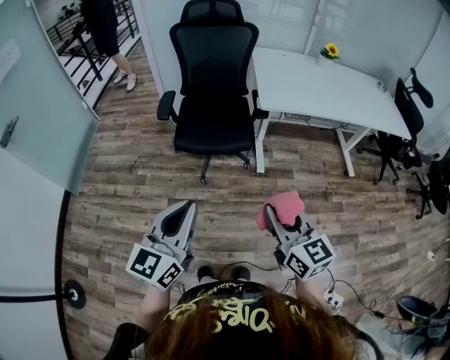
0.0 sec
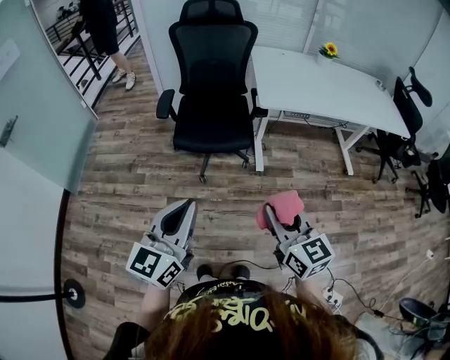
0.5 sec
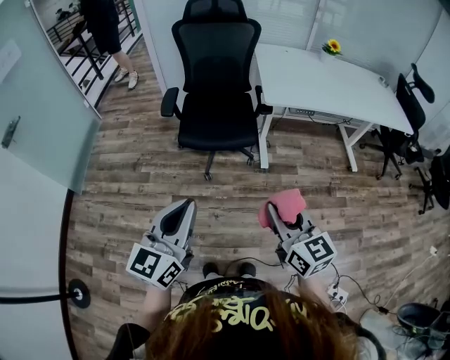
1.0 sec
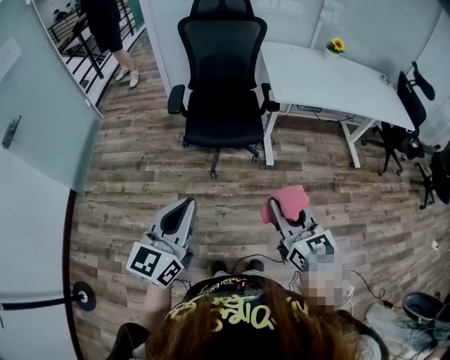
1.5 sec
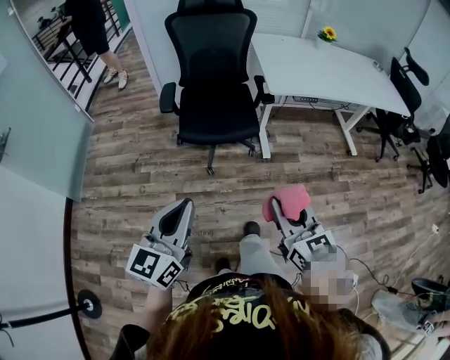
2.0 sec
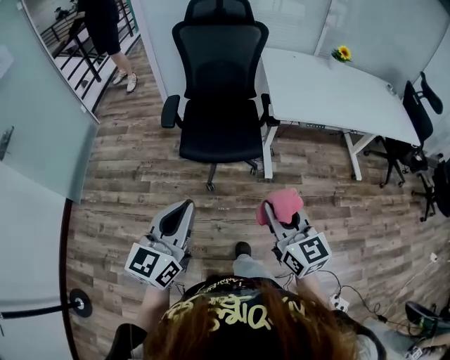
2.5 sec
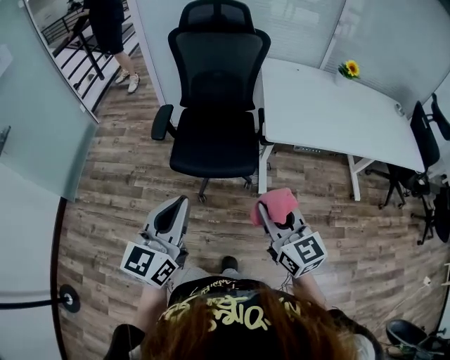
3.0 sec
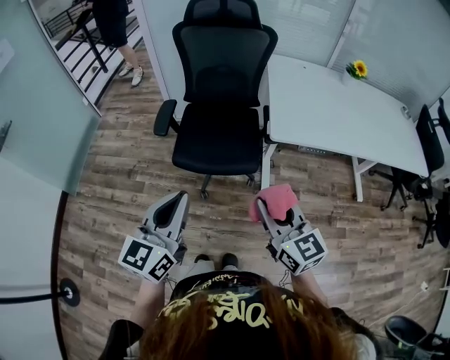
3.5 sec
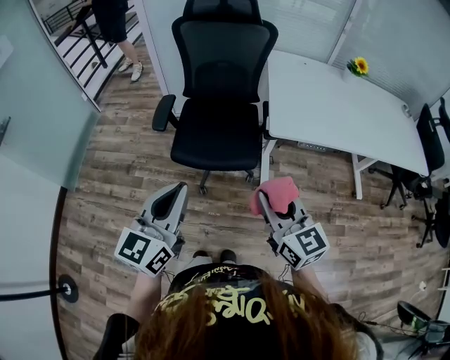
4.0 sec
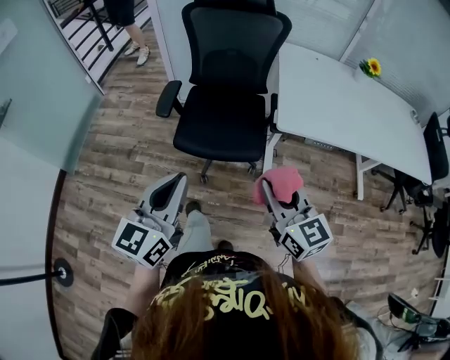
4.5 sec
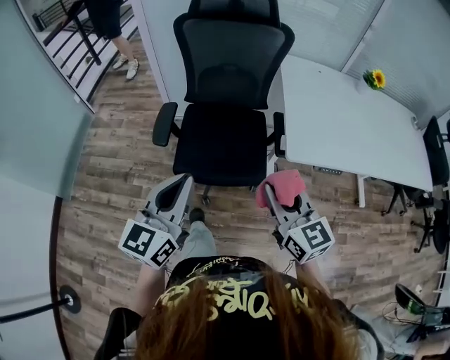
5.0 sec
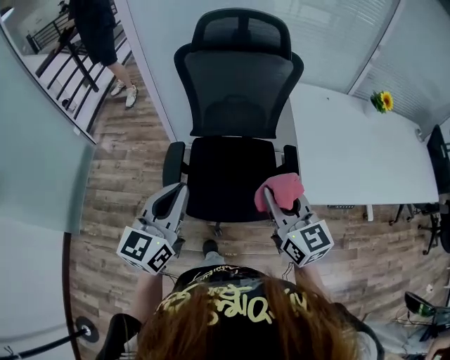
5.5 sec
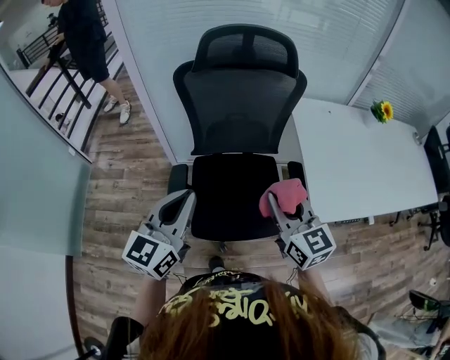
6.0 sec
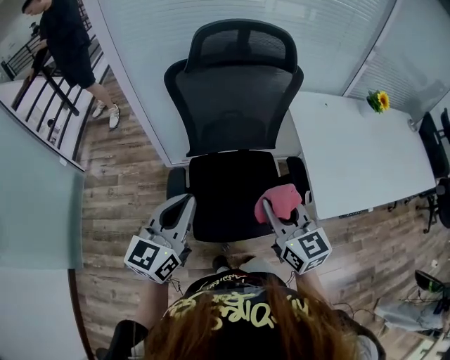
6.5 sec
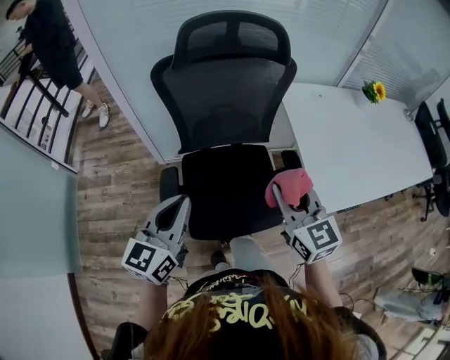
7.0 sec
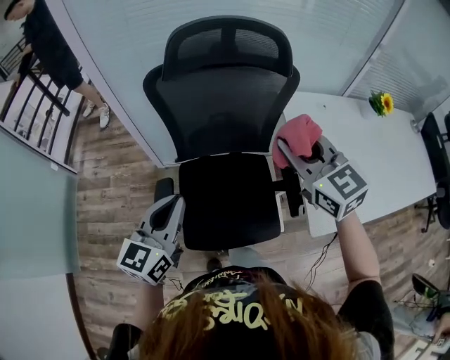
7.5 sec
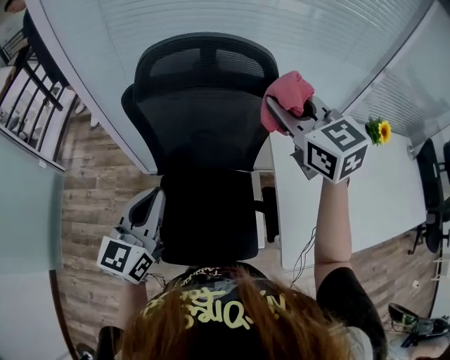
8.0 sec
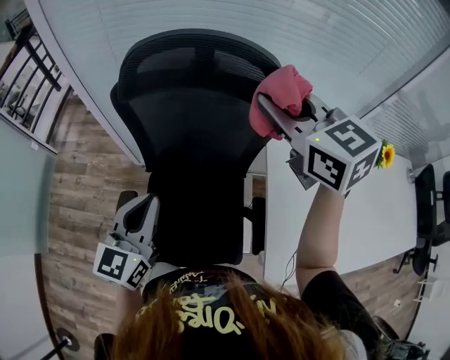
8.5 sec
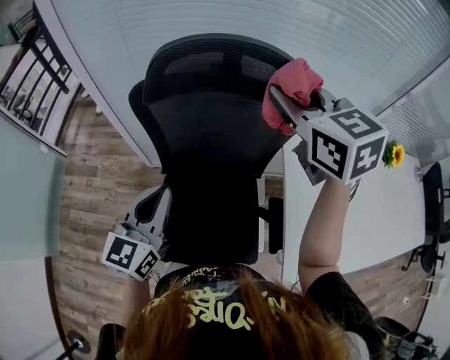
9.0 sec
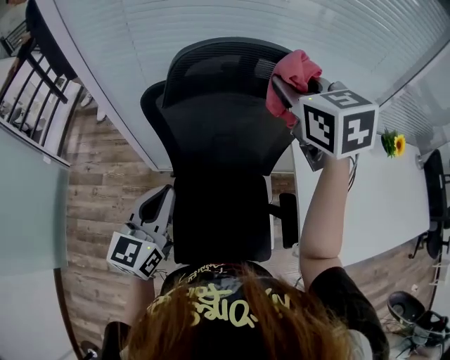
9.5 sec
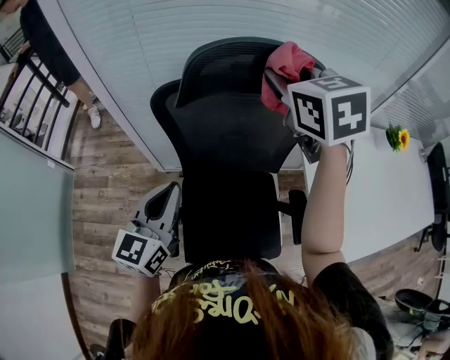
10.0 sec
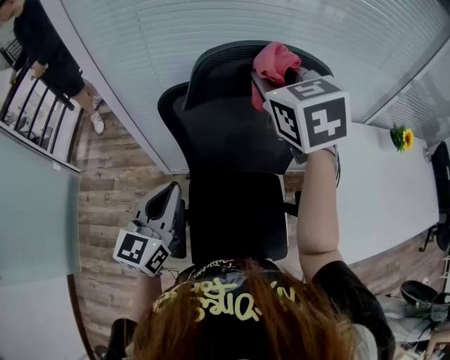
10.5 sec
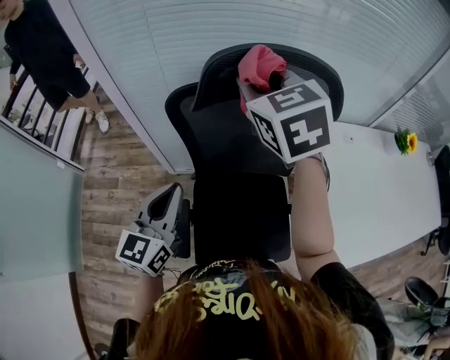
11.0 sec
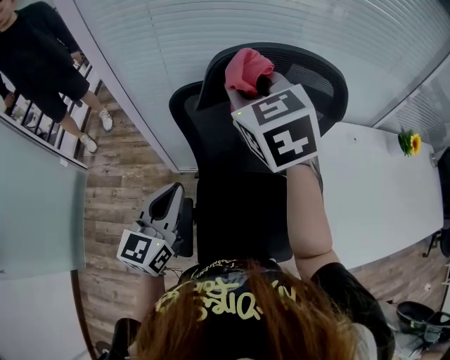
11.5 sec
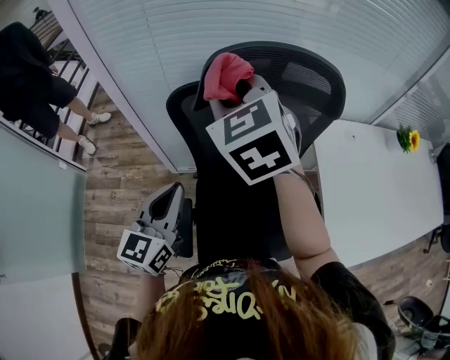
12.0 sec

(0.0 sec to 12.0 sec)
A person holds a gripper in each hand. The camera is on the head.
0.0 sec - 2.0 sec: Both grippers move to the left, about 10 cm.
2.0 sec - 4.0 sec: The right gripper travels forward by about 25 cm, while the left gripper moves forward and to the right, some 25 cm.
4.0 sec - 6.0 sec: The two grippers go approximately 35 cm forward.
6.0 sec - 8.0 sec: The left gripper heads forward, covering approximately 20 cm; the right gripper moves forward and upward, roughly 35 cm.
8.0 sec - 10.0 sec: The two grippers go roughly 10 cm to the left and forward.
10.0 sec - 12.0 sec: The right gripper shifts roughly 15 cm to the left.

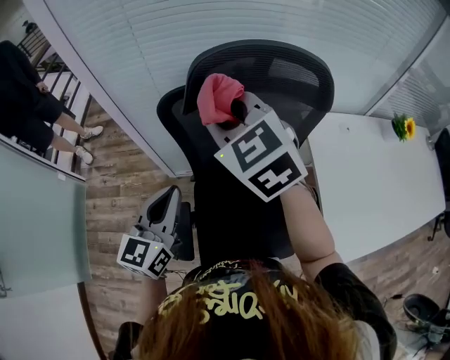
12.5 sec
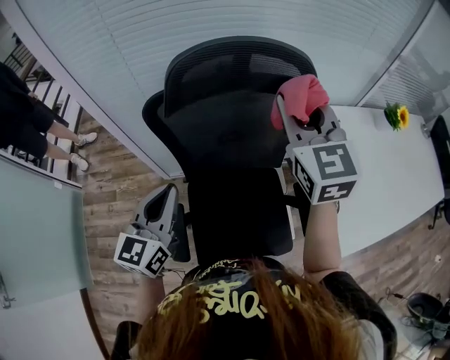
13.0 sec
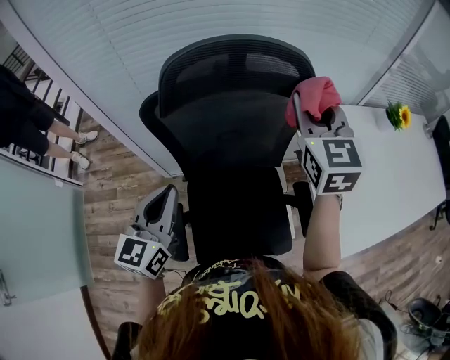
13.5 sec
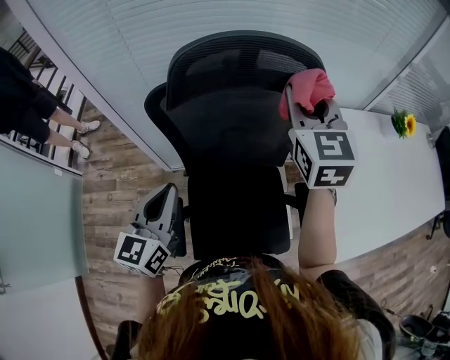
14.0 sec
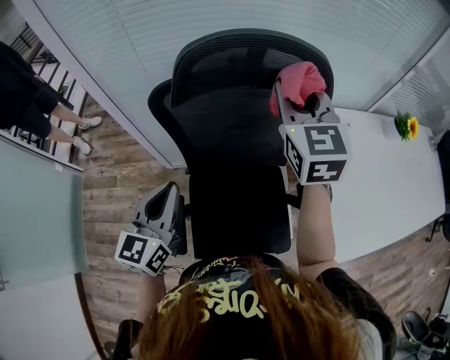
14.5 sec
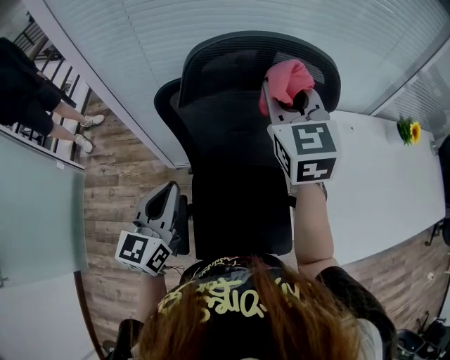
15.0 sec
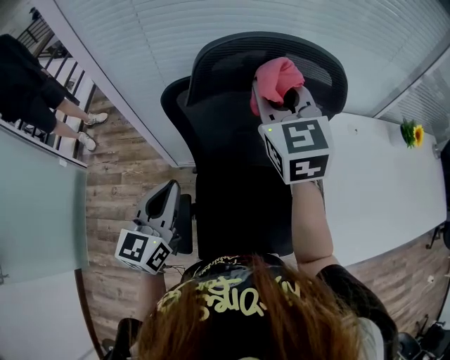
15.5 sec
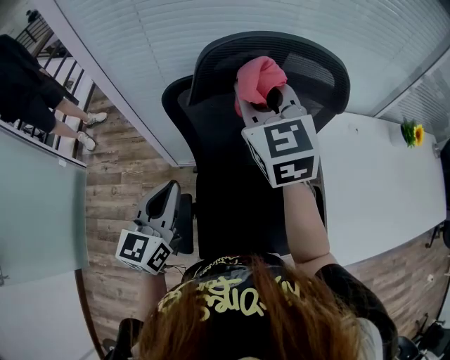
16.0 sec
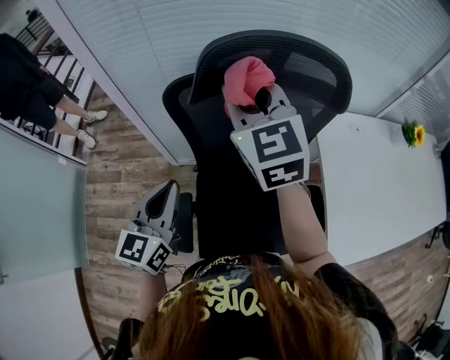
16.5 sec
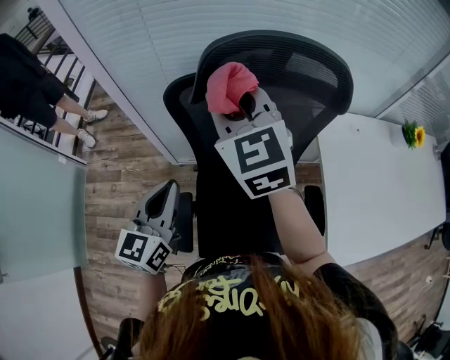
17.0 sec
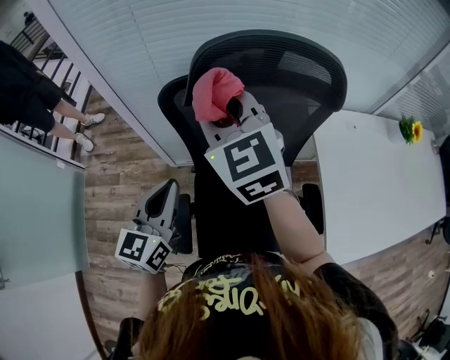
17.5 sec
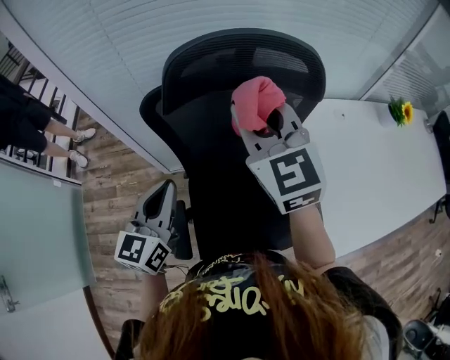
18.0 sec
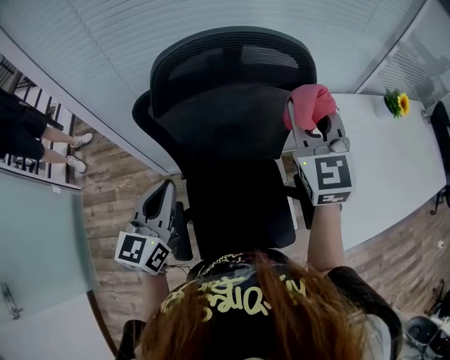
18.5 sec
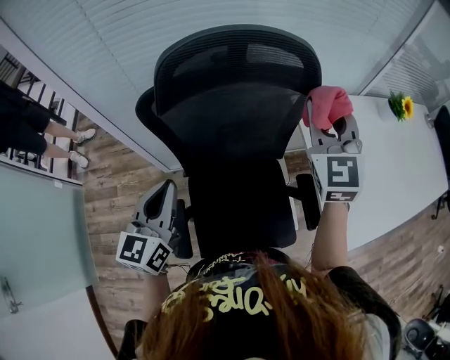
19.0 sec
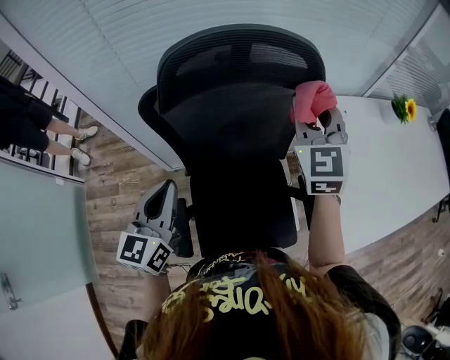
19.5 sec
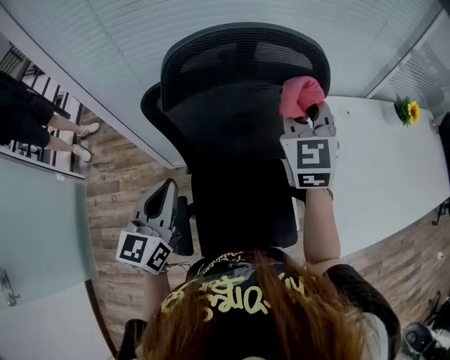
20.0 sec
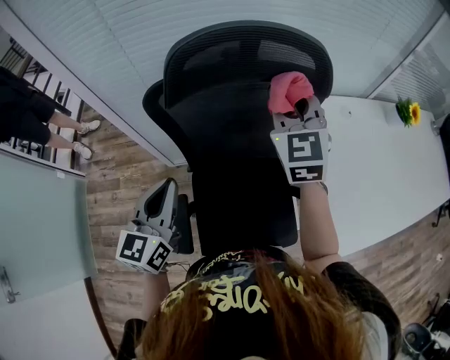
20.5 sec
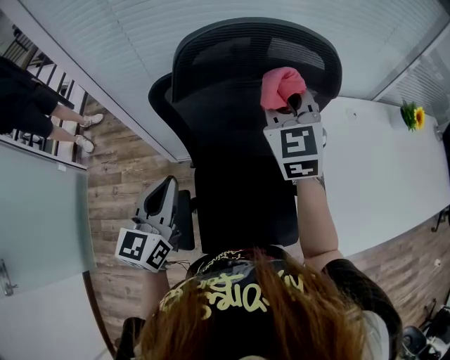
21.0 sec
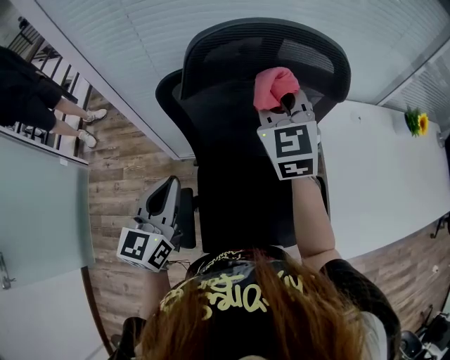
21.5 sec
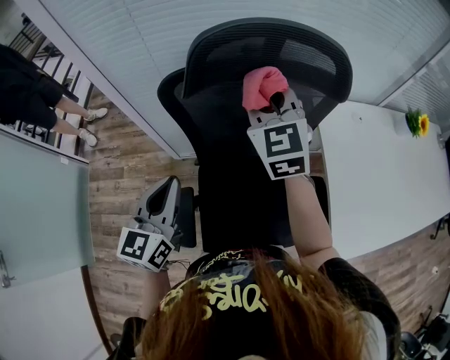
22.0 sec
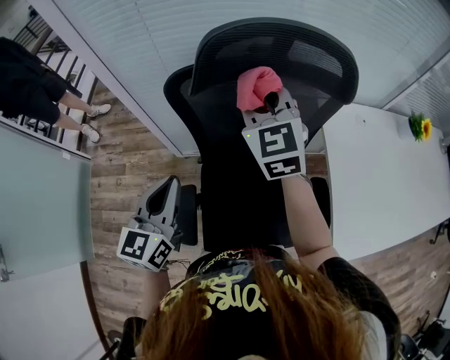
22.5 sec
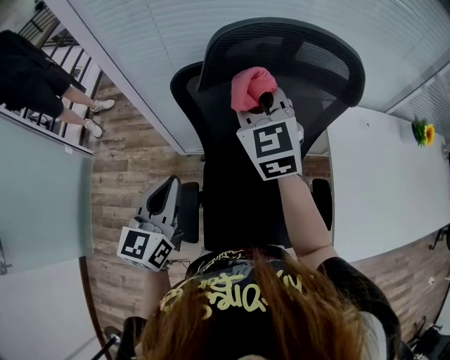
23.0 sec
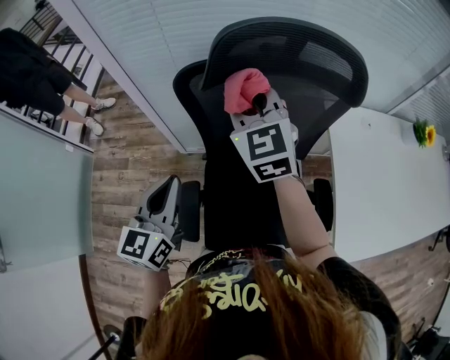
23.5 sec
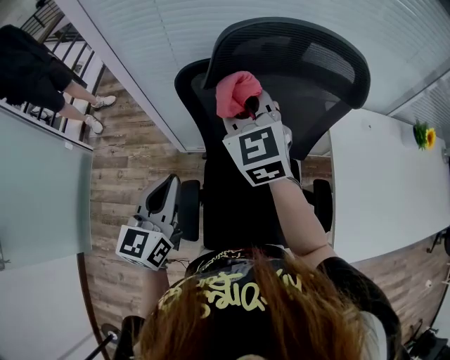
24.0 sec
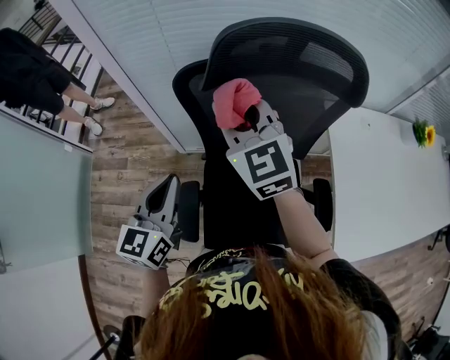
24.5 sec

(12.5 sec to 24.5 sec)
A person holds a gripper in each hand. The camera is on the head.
12.5 sec - 14.5 sec: The right gripper moves to the right, approximately 15 cm, and changes its angle by approximately 30 degrees.
14.5 sec - 16.5 sec: The right gripper travels to the left by roughly 15 cm.
16.5 sec - 18.5 sec: The right gripper travels to the right by roughly 20 cm, and turns by about 20 degrees. The left gripper changes place by about 5 cm.
18.5 sec - 20.5 sec: The right gripper travels to the left by some 5 cm.
20.5 sec - 22.5 sec: The right gripper goes approximately 10 cm to the left.
22.5 sec - 24.5 sec: The right gripper is displaced to the left by approximately 5 cm.

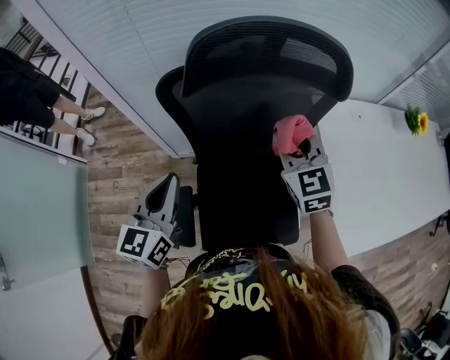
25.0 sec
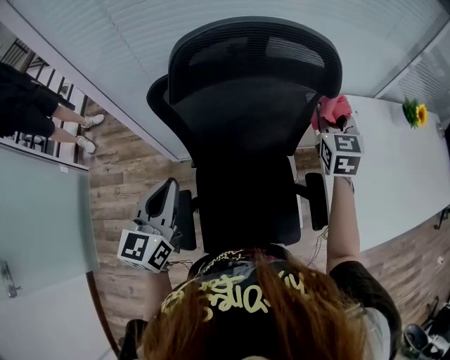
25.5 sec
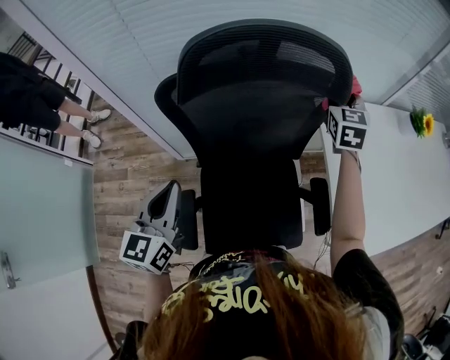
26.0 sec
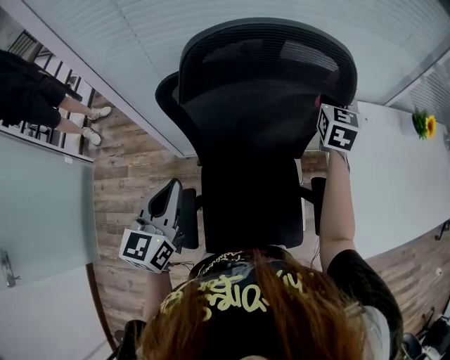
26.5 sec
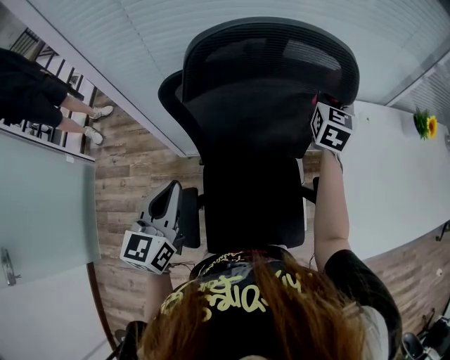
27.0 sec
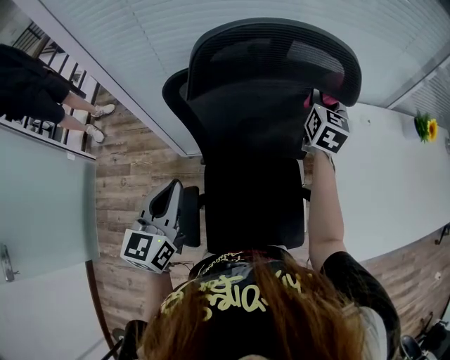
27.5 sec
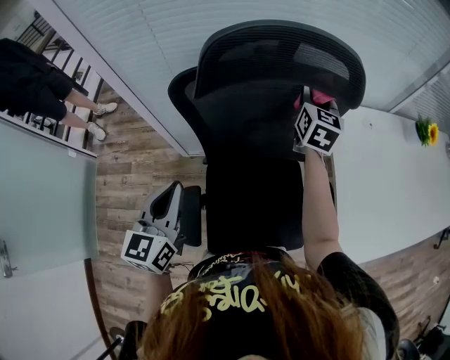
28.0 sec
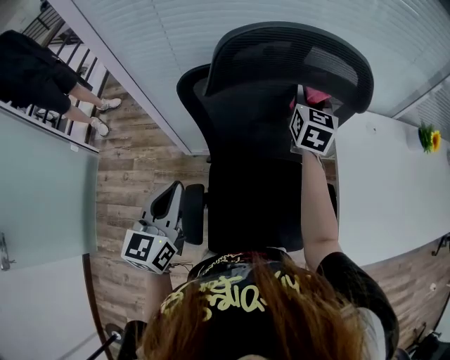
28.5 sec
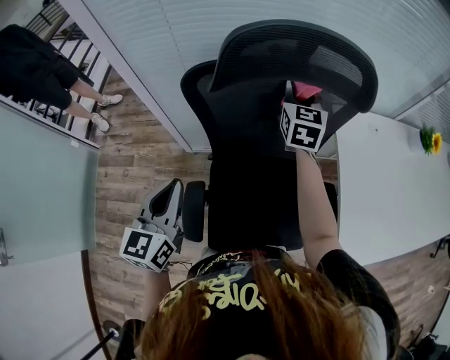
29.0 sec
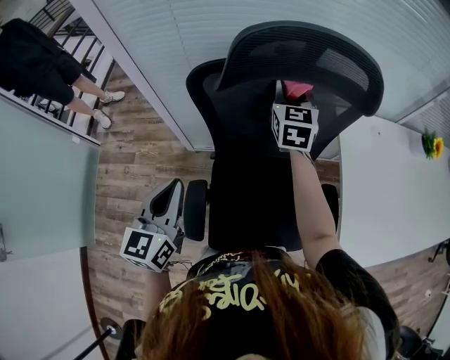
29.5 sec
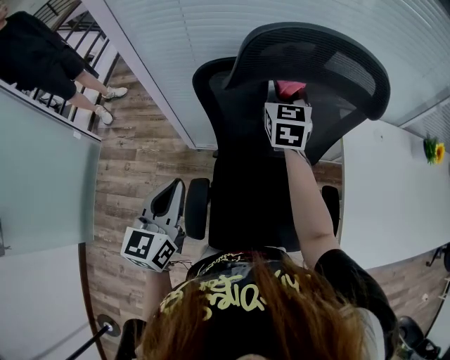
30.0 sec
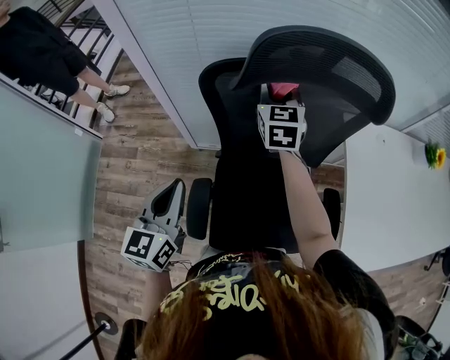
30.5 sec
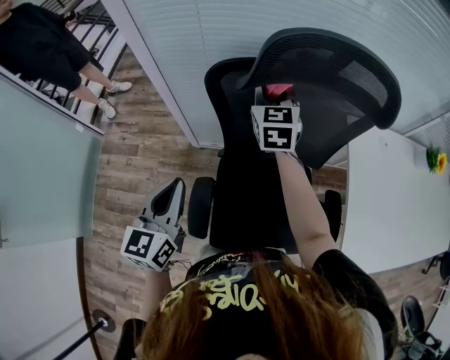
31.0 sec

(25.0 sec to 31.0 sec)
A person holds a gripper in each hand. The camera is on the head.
25.0 sec - 27.0 sec: The right gripper goes some 20 cm forward and to the right, and turns by some 30 degrees.
27.0 sec - 29.0 sec: The right gripper moves to the left, roughly 15 cm.
29.0 sec - 31.0 sec: The right gripper goes approximately 15 cm to the left.
